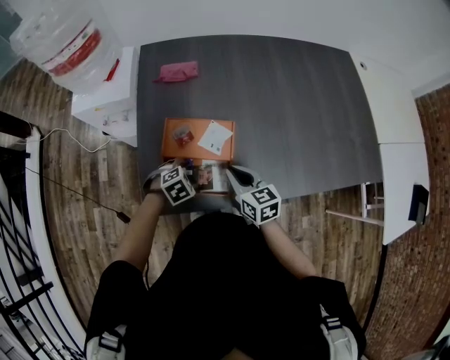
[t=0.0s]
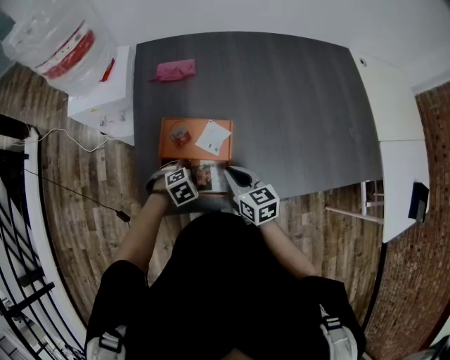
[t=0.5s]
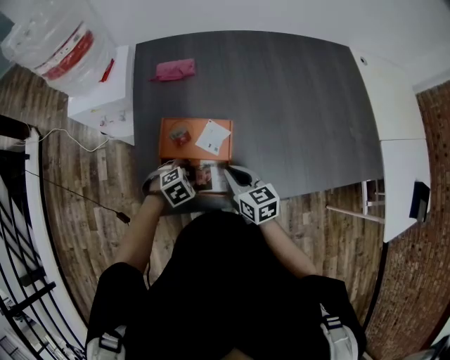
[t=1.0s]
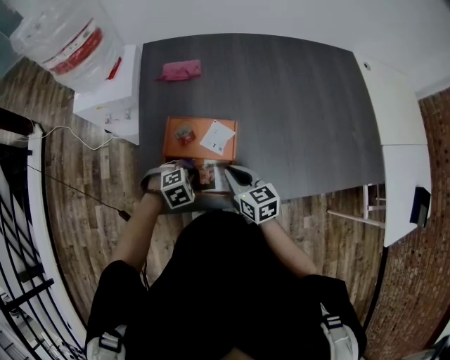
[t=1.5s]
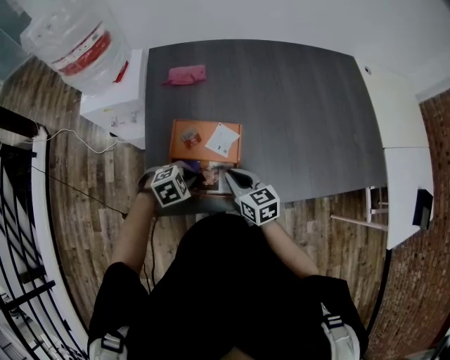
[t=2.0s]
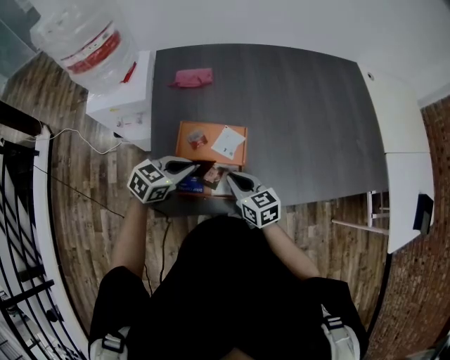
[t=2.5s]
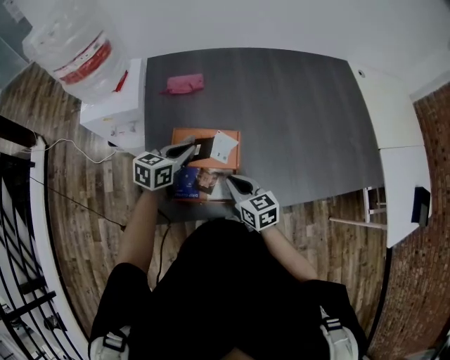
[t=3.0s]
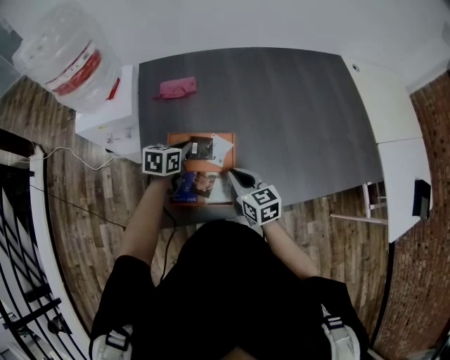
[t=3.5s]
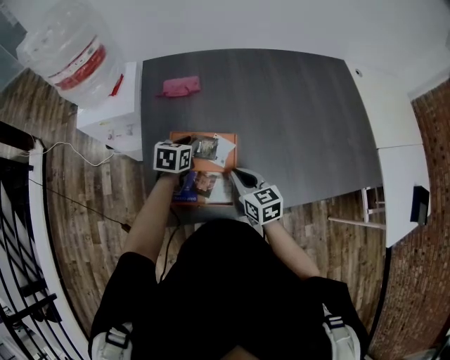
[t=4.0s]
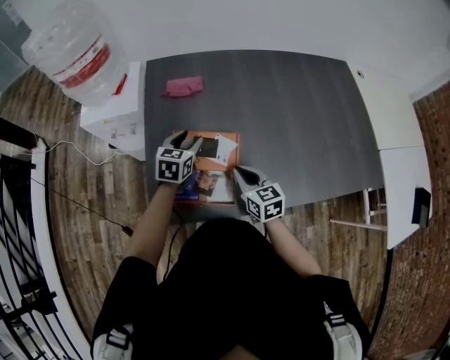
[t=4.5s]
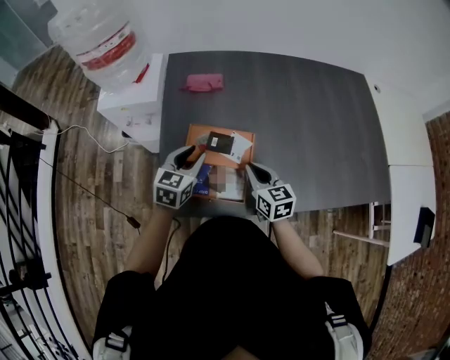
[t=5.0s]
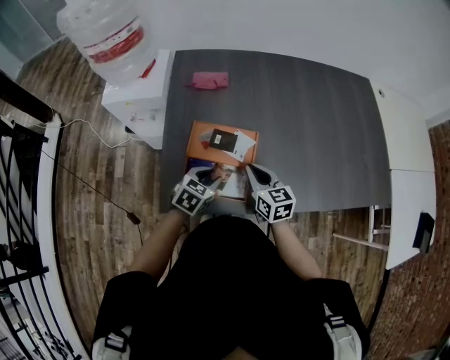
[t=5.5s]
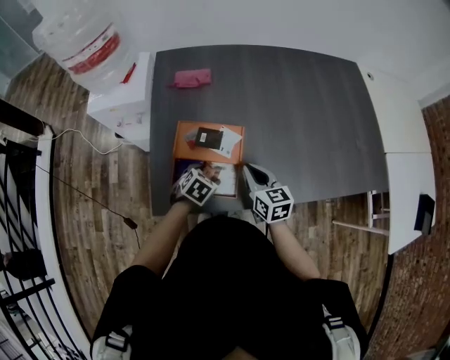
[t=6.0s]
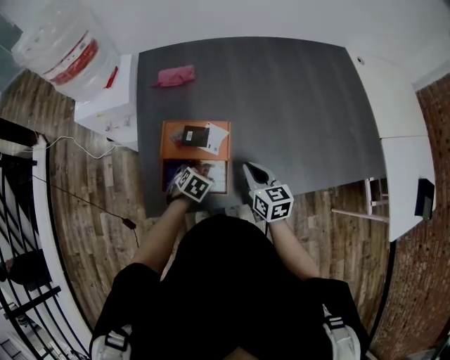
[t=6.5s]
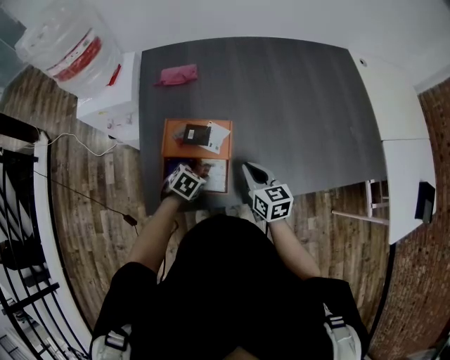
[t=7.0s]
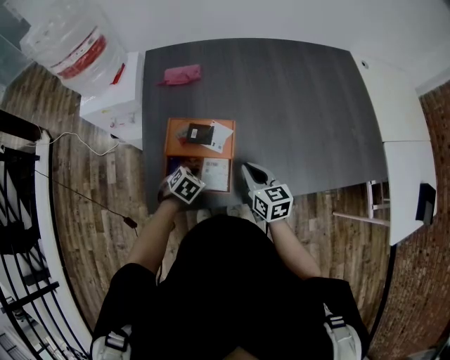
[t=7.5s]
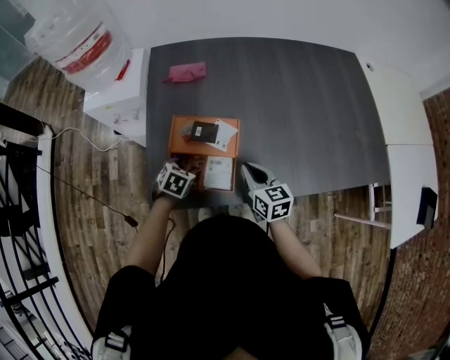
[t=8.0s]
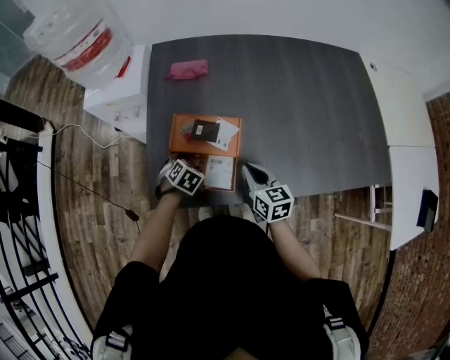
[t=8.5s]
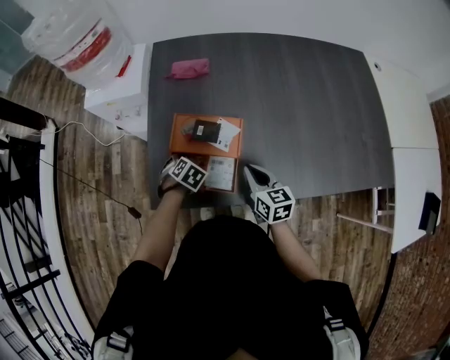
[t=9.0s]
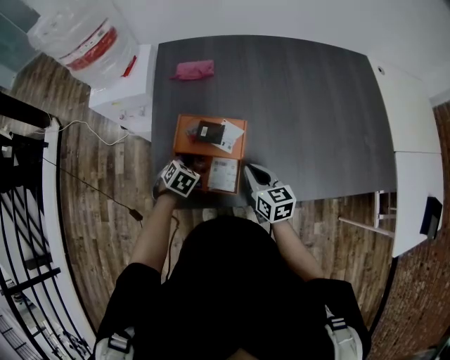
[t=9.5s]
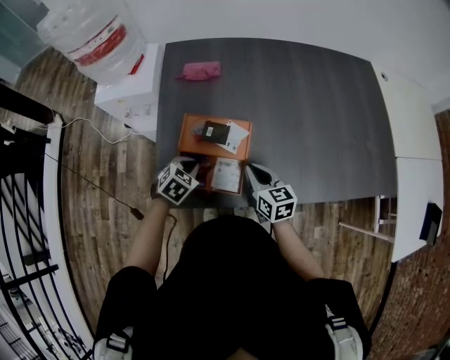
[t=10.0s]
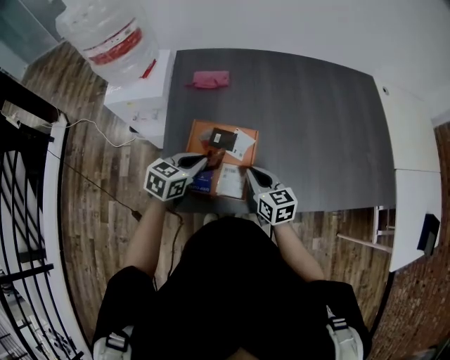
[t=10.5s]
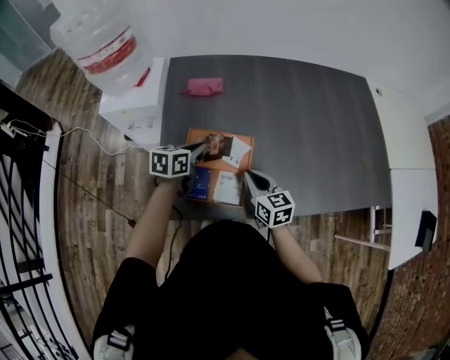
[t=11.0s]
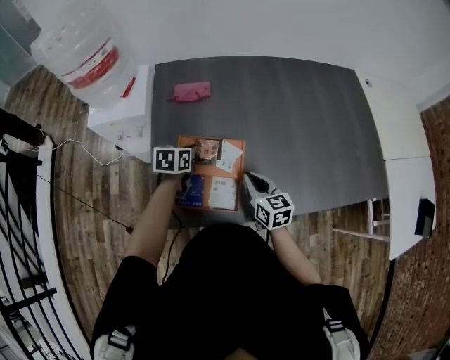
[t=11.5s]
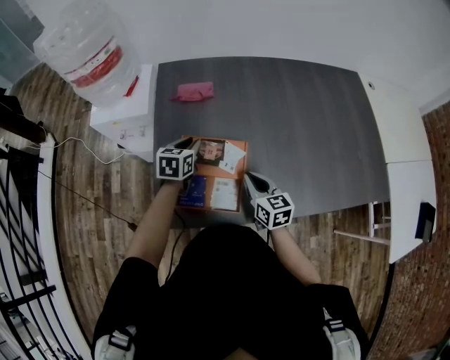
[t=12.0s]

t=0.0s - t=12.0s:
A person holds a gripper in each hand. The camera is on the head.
t=0.0s - t=2.0s: The left gripper travels upward by roughly 5 cm, and closes its fingers.
t=2.0s - t=4.0s: The left gripper goes some 15 cm forward, and rolls counterclockwise, seen from behind, by about 50 degrees.
t=4.0s - t=6.0s: The left gripper is displaced backward and downward by roughly 15 cm, rotates about 30 degrees, and opens.
t=6.0s - t=8.0s: The left gripper shifts approximately 5 cm to the left, and closes and opens again.
t=8.0s - t=10.0s: The left gripper closes.
t=10.0s - t=12.0s: The left gripper goes some 15 cm forward and upward, and turns by about 40 degrees.

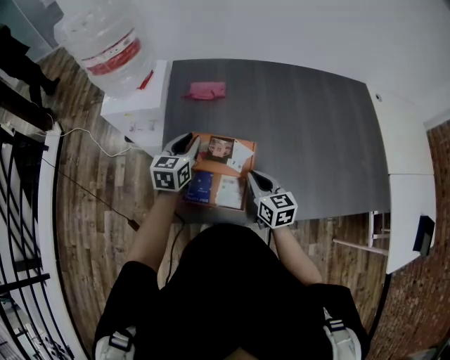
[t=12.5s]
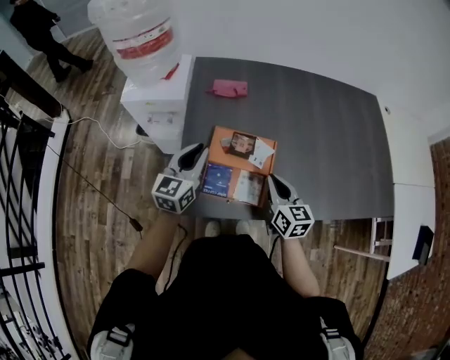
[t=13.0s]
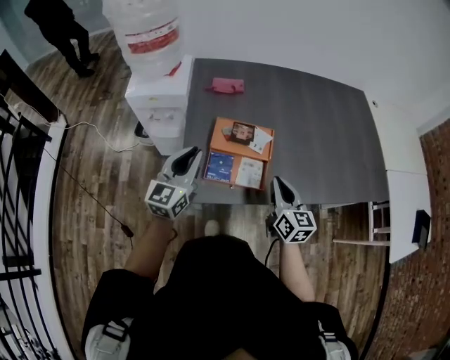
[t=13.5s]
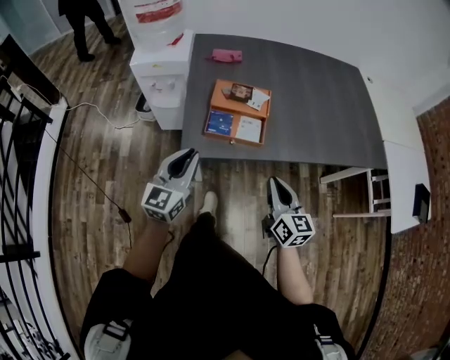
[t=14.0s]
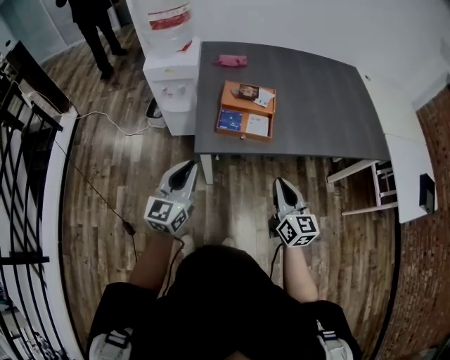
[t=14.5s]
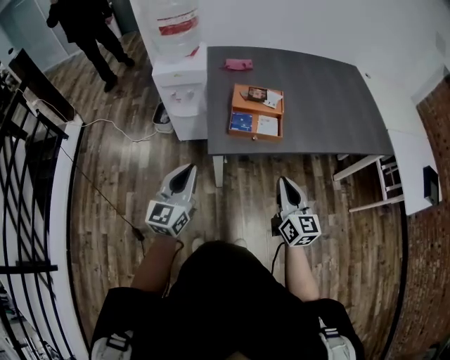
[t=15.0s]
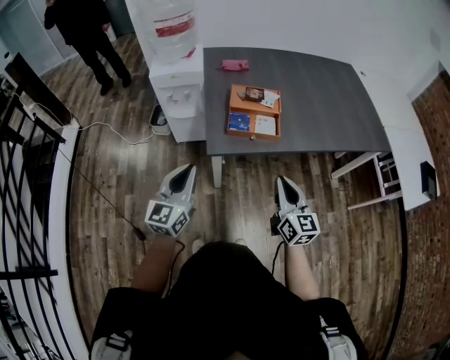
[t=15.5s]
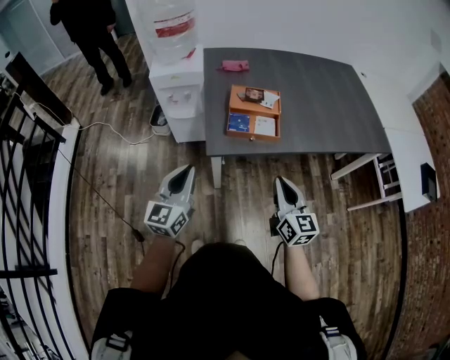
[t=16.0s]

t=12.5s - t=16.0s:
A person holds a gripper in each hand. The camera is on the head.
t=12.5s - t=14.5s: Both grippers move backward, some 35 cm. The left gripper swivels roughly 20 degrees, while the right gripper rotates some 20 degrees.
t=14.5s - t=16.0s: The right gripper moves some 5 cm, while the left gripper ends up approximately 5 cm from where it was.

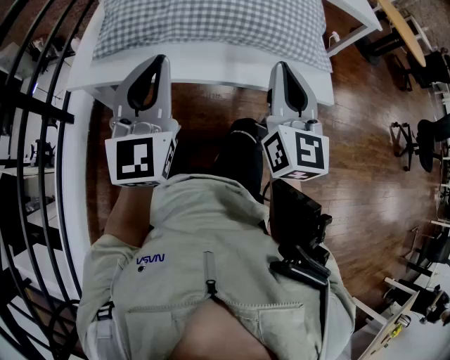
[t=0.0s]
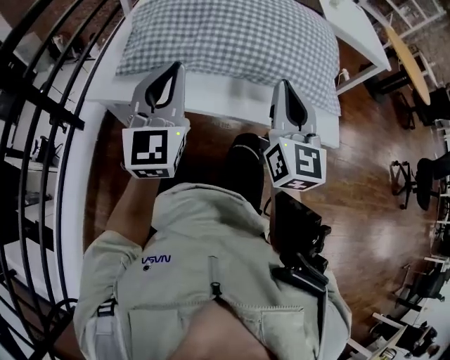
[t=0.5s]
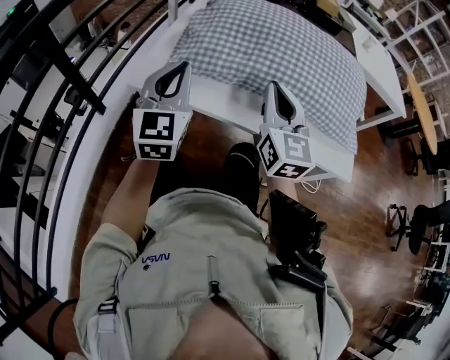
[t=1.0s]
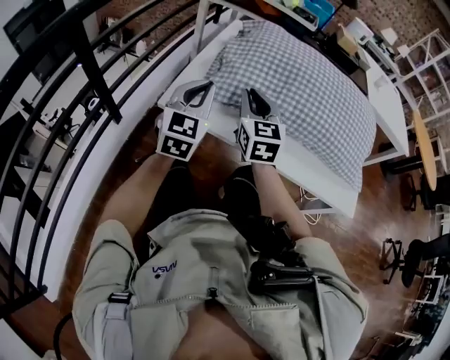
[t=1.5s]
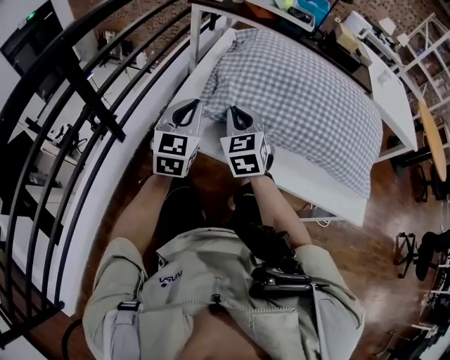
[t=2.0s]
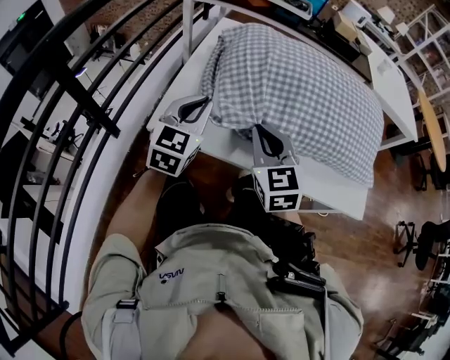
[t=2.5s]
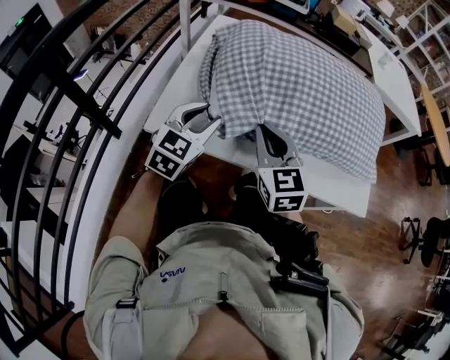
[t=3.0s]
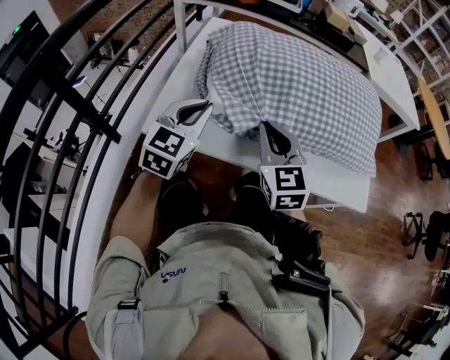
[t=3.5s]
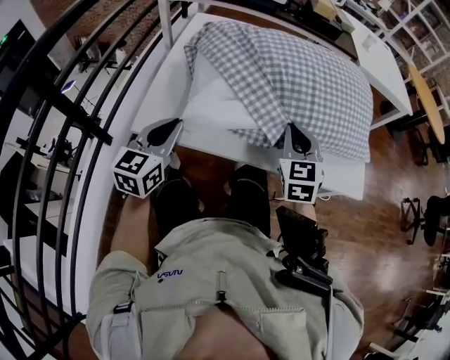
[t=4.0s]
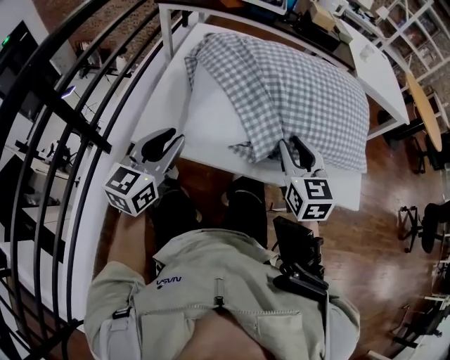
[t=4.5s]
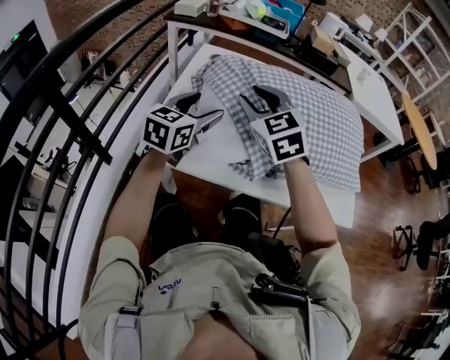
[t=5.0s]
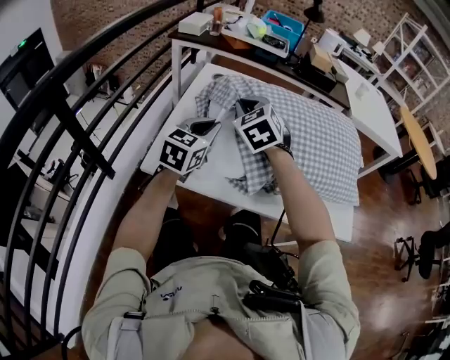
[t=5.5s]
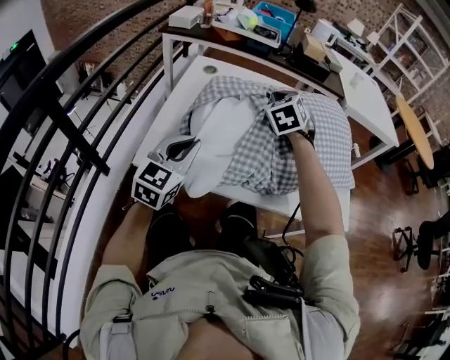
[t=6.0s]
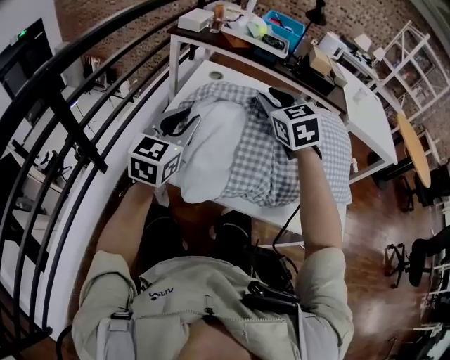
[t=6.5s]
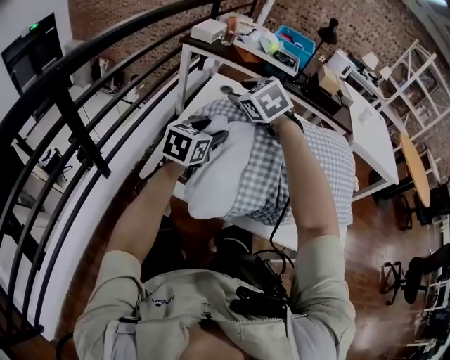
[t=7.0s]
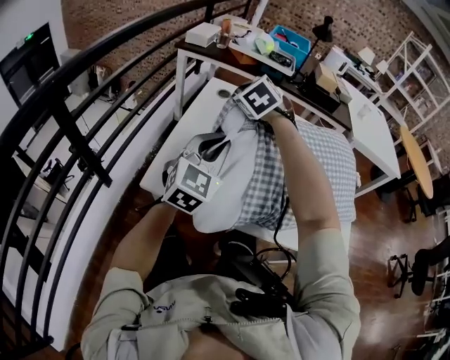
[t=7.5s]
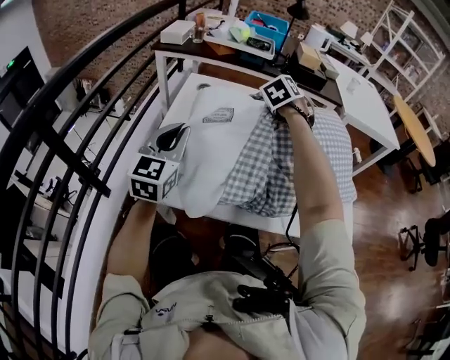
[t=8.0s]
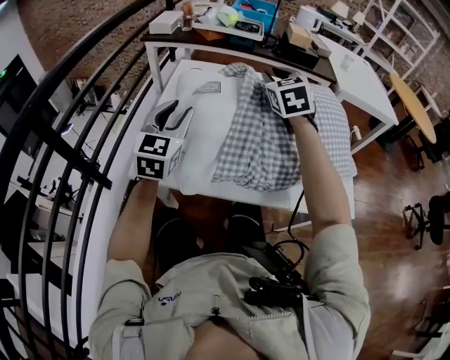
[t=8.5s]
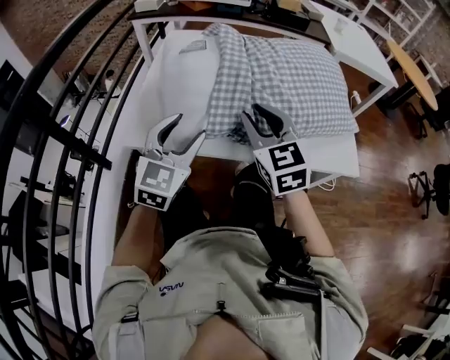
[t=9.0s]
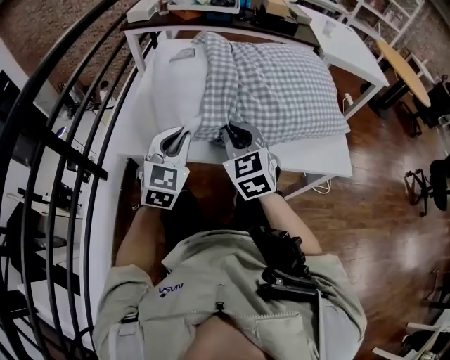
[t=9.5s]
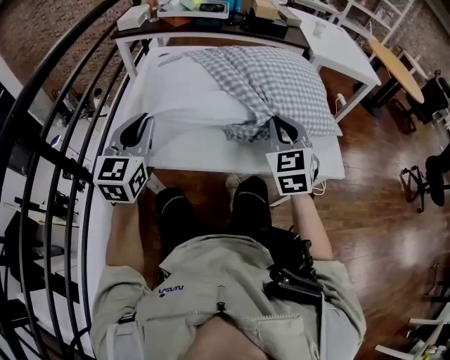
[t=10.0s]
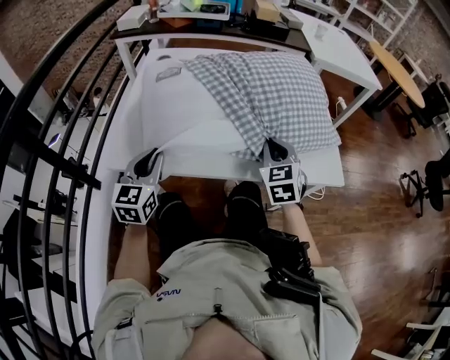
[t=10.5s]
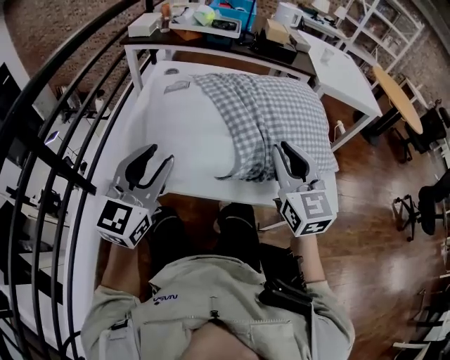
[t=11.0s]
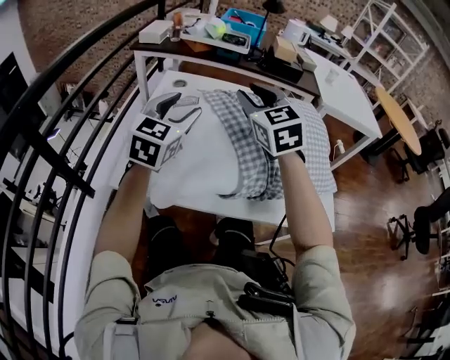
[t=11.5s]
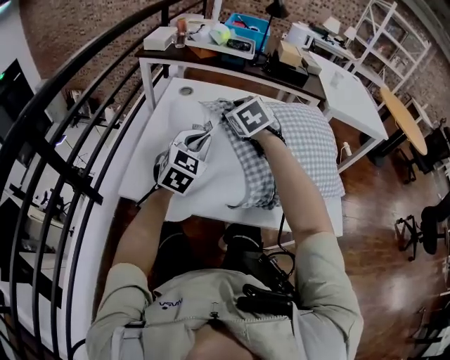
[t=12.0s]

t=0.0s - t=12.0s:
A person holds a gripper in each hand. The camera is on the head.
t=0.0s - t=2.0s: The left gripper heads to the left, forward and downward, covering about 25 cm, and swivels approximately 20 degrees. Meanwhile the right gripper shifts about 35 cm to the left and forward, and changes its angle by approximately 40 degrees.
t=2.0s - t=4.0s: The left gripper travels backward by approximately 5 cm, changes its angle by roughly 20 degrees, and opens, then closes once more; the right gripper travels to the right by roughly 20 cm, and rotates roughly 20 degrees.
t=4.0s - t=6.0s: The right gripper travels forward and upward by some 20 cm, and opens and closes again. Meanwhile the left gripper goes forward and returns, roughly 15 cm each way, and opens and closes again.
t=6.0s - t=8.0s: The right gripper shifts roughly 10 cm forward, travels to the left and back again, roughly 20 cm each way, and opens, then closes again. Meanwhile the left gripper heads forward and upward, covering approximately 10 cm, and opens, then closes again.
t=8.0s - t=10.0s: The right gripper is displaced backward by roughly 30 cm, changes its angle by roughly 30 degrees, and opens, then closes once more. The left gripper travels backward by roughly 10 cm, and opens, then closes again.
t=10.0s - t=12.0s: The right gripper is displaced forward and to the left by some 25 cm, rotates approximately 30 degrees, and opens; the left gripper heads forward and to the right, covering roughly 15 cm, and opens and closes again.
